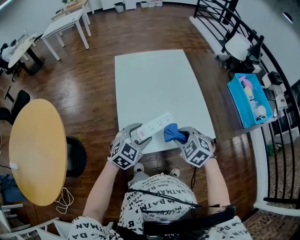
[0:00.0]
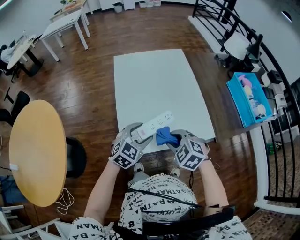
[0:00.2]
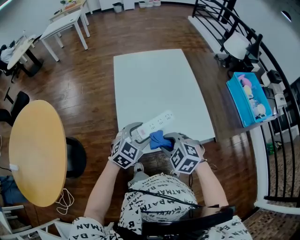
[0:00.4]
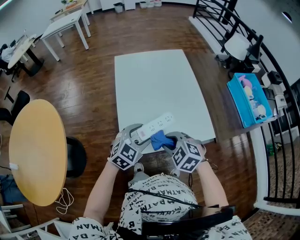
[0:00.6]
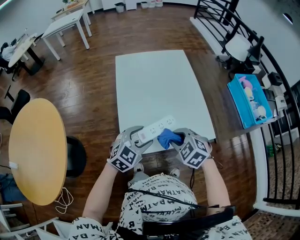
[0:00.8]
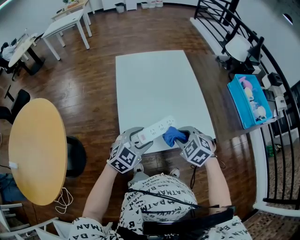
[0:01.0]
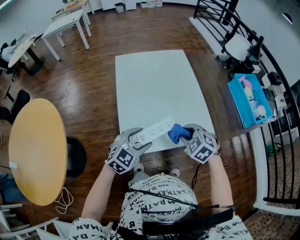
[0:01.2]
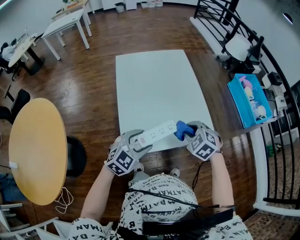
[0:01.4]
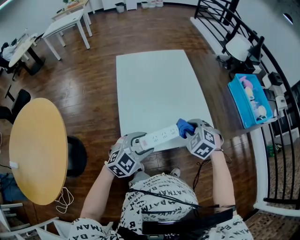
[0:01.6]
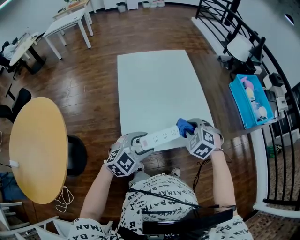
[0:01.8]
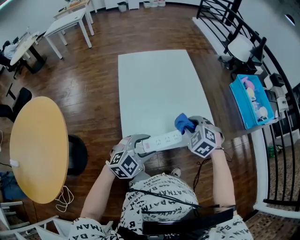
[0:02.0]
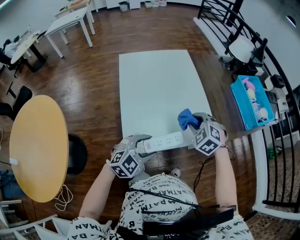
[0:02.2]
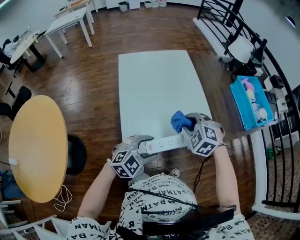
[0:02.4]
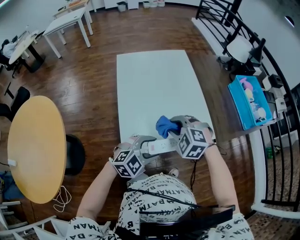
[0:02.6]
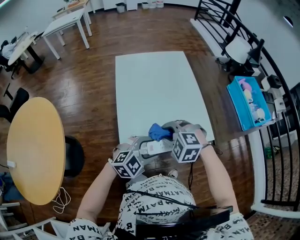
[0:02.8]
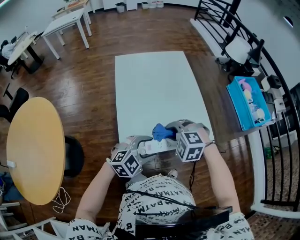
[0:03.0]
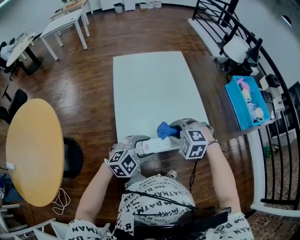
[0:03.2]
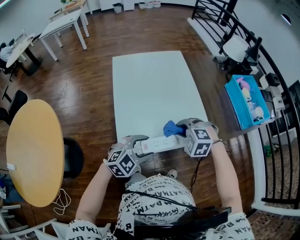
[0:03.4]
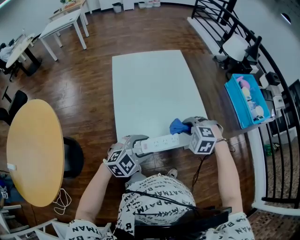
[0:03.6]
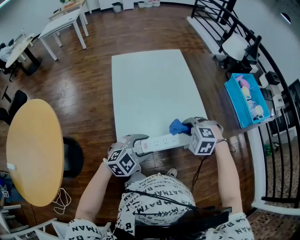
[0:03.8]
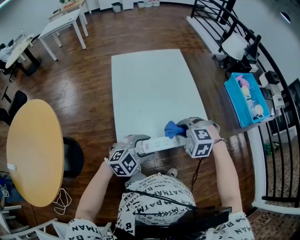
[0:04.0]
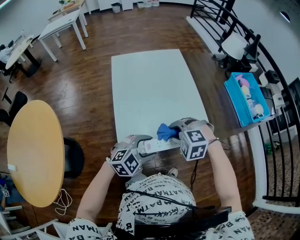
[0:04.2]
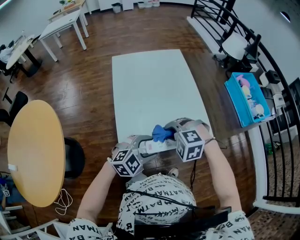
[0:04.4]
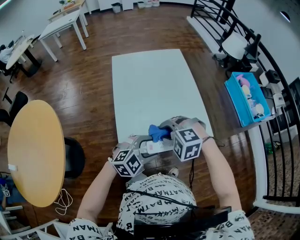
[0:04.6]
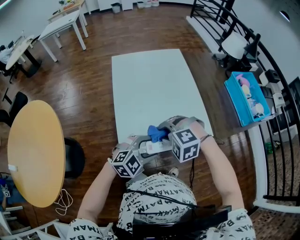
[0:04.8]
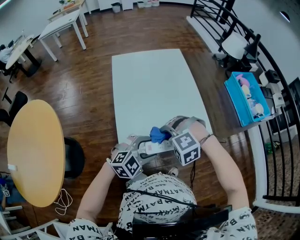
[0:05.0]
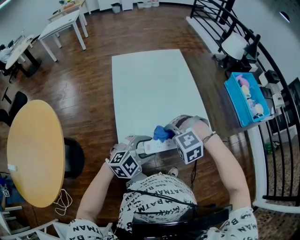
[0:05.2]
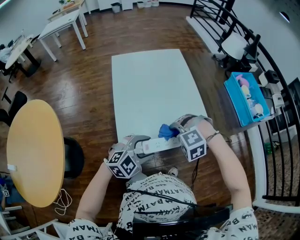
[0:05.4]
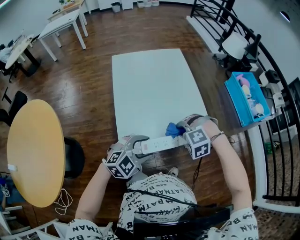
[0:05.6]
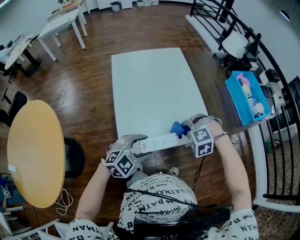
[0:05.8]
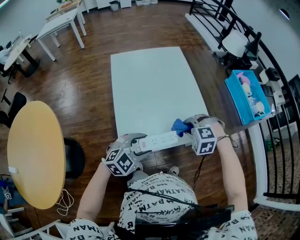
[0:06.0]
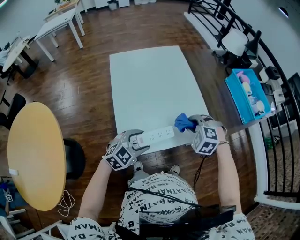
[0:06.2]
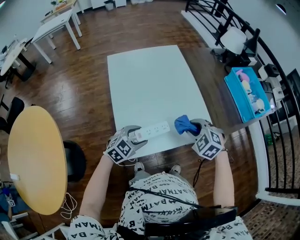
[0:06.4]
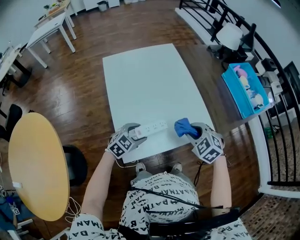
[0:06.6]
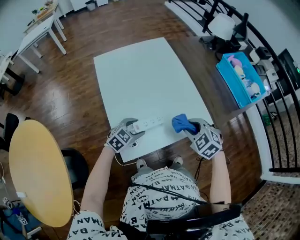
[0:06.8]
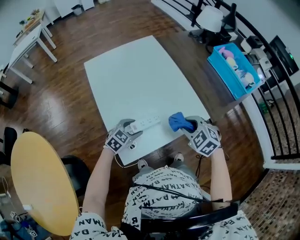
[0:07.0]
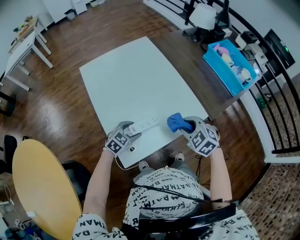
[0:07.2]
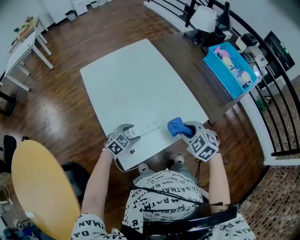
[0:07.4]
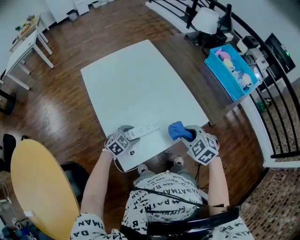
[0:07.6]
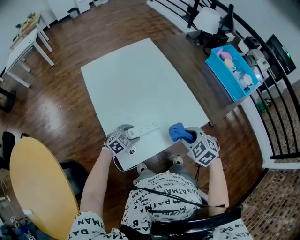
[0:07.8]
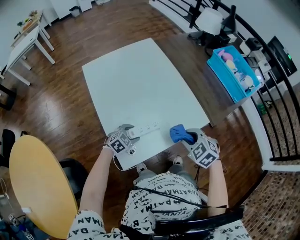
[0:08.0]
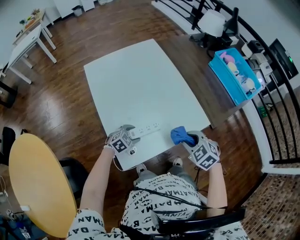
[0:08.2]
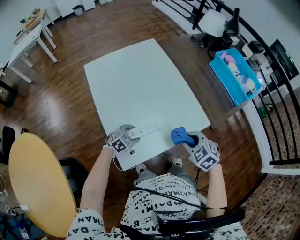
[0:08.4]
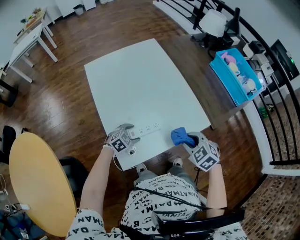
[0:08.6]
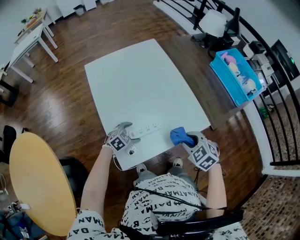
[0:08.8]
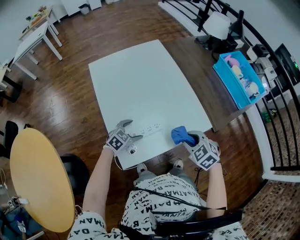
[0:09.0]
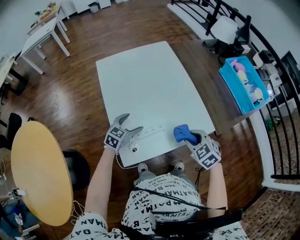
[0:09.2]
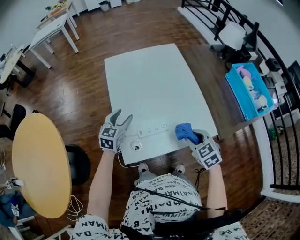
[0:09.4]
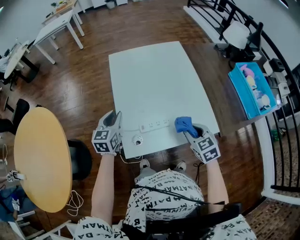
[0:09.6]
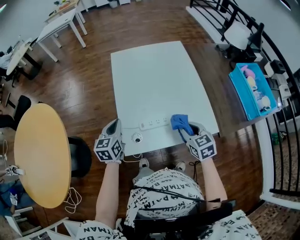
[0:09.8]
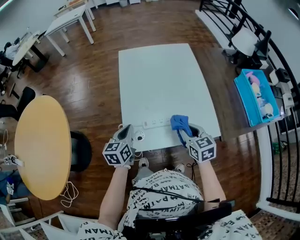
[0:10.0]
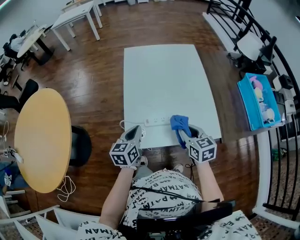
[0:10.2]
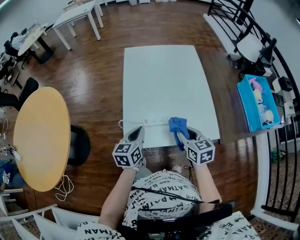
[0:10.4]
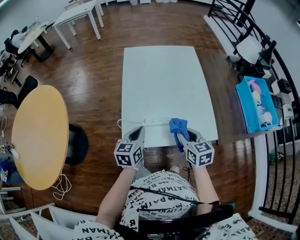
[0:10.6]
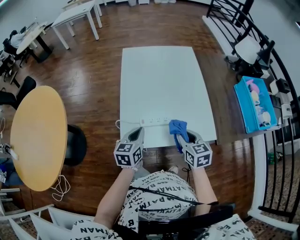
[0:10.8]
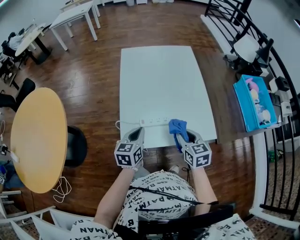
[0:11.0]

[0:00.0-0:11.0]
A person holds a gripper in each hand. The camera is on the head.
0:00.0 to 0:01.6: The right gripper ends up roughly 5 cm from where it was. Meanwhile the left gripper is displaced backward by about 5 cm.
0:01.6 to 0:03.2: The right gripper moves to the left, roughly 5 cm, and changes its angle by some 30 degrees.
0:03.2 to 0:04.8: The right gripper ends up approximately 5 cm from where it was.
0:04.8 to 0:06.2: The left gripper heads to the left, covering approximately 5 cm. Meanwhile the right gripper heads to the right and forward, covering about 15 cm, and turns by roughly 30 degrees.
0:06.2 to 0:07.8: The right gripper shifts by some 5 cm, and changes its angle by roughly 40 degrees, while the left gripper shifts about 20 cm downward and forward.
0:07.8 to 0:09.4: The left gripper travels upward and to the left by some 20 cm, and rotates roughly 50 degrees.
0:09.4 to 0:11.0: The left gripper goes some 15 cm backward, rotates roughly 20 degrees, and closes.

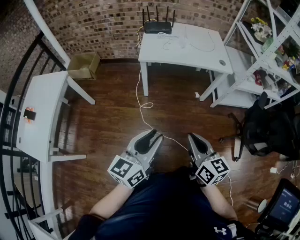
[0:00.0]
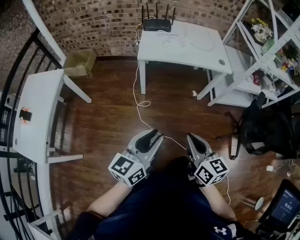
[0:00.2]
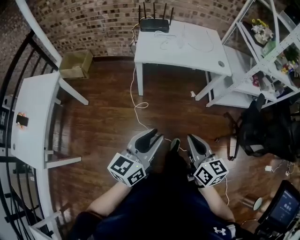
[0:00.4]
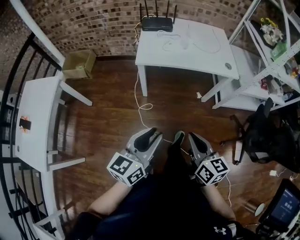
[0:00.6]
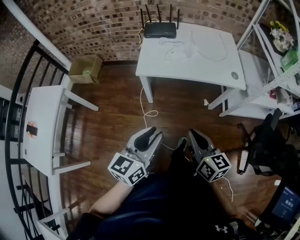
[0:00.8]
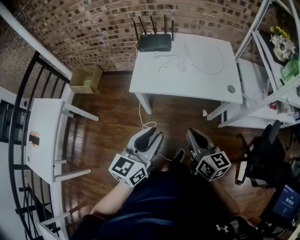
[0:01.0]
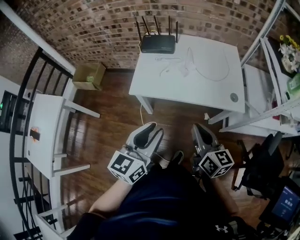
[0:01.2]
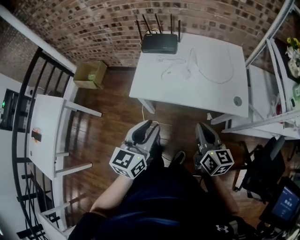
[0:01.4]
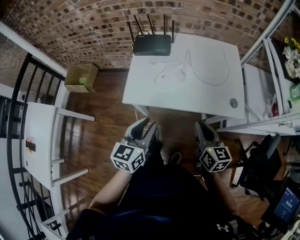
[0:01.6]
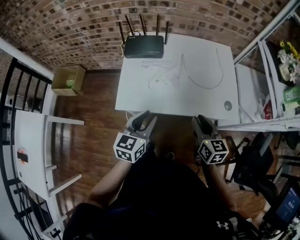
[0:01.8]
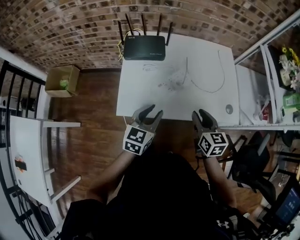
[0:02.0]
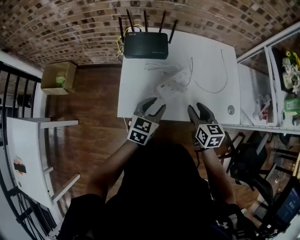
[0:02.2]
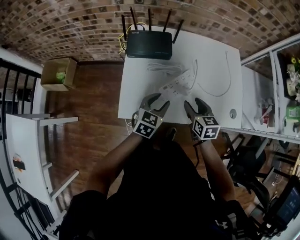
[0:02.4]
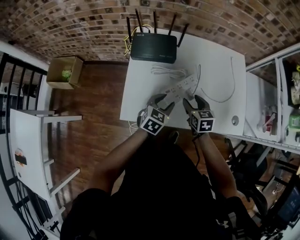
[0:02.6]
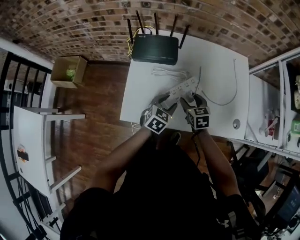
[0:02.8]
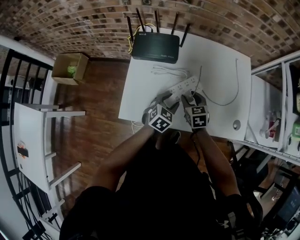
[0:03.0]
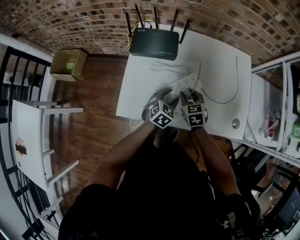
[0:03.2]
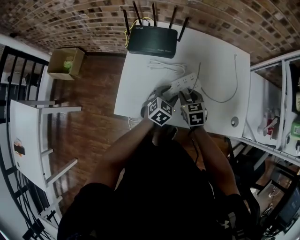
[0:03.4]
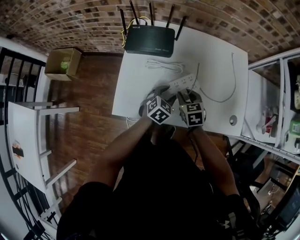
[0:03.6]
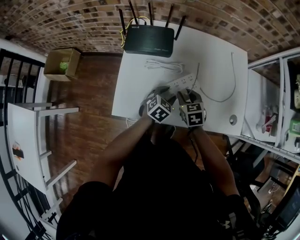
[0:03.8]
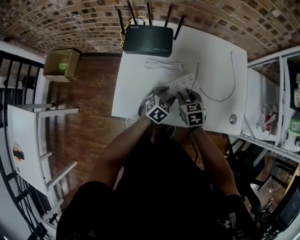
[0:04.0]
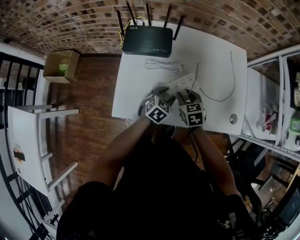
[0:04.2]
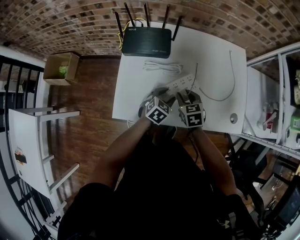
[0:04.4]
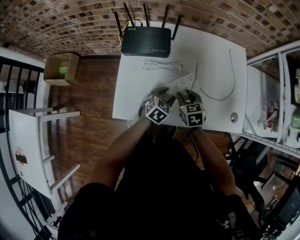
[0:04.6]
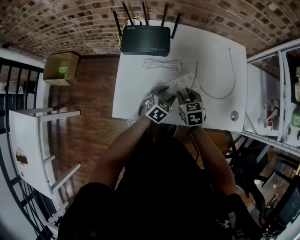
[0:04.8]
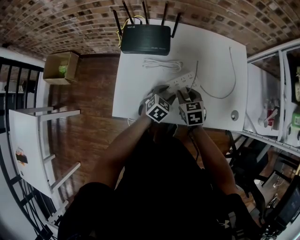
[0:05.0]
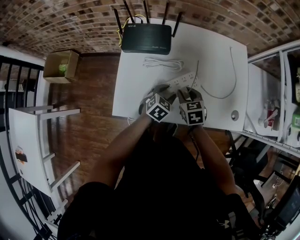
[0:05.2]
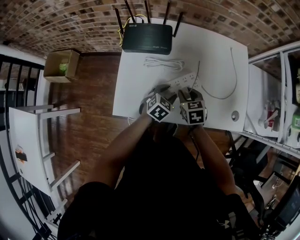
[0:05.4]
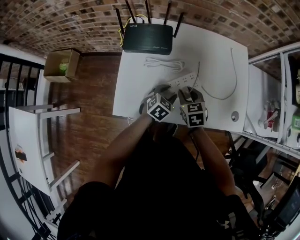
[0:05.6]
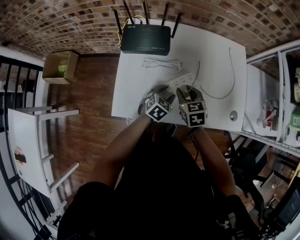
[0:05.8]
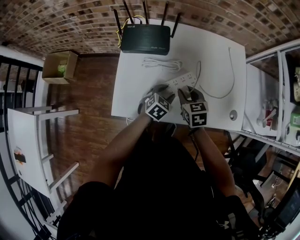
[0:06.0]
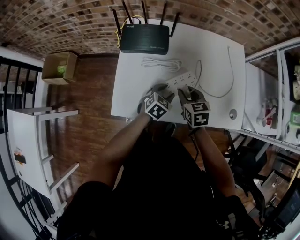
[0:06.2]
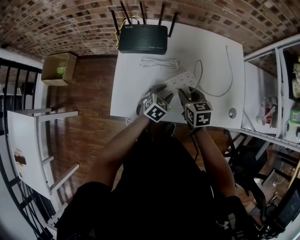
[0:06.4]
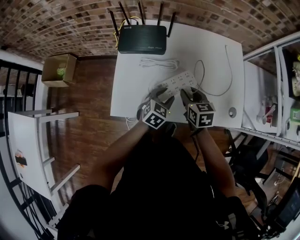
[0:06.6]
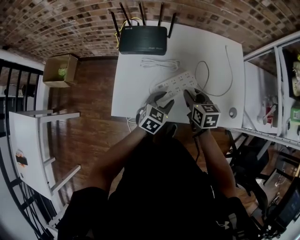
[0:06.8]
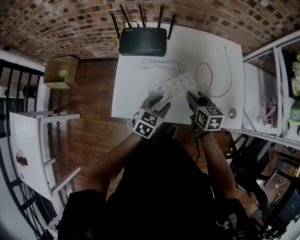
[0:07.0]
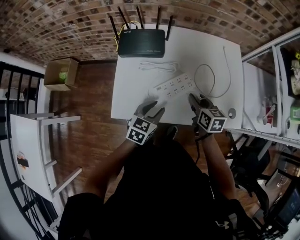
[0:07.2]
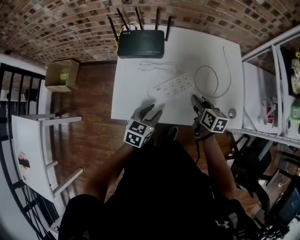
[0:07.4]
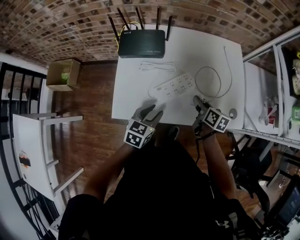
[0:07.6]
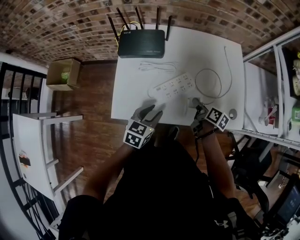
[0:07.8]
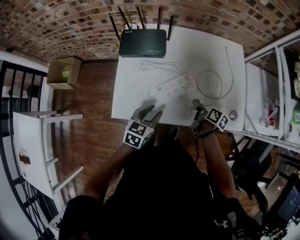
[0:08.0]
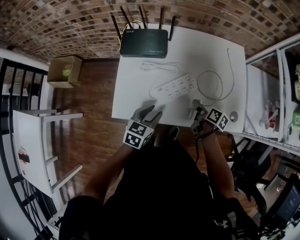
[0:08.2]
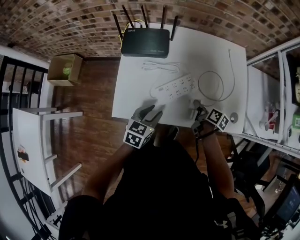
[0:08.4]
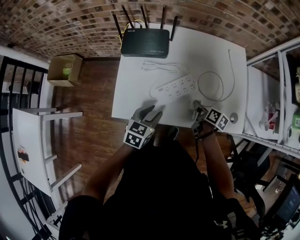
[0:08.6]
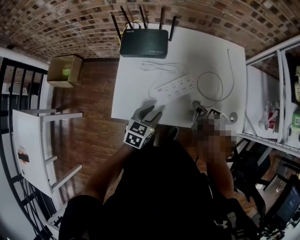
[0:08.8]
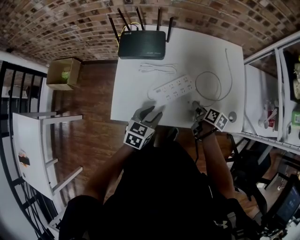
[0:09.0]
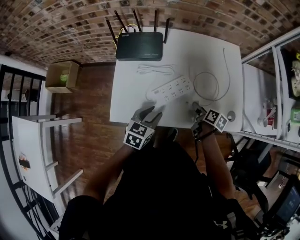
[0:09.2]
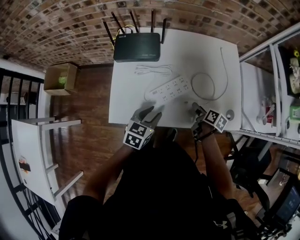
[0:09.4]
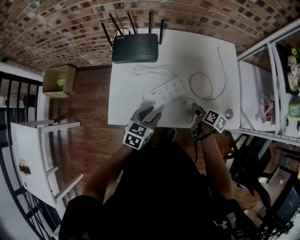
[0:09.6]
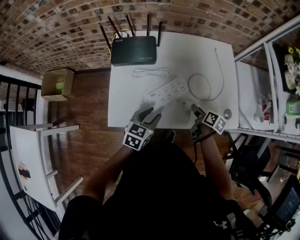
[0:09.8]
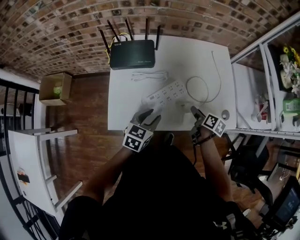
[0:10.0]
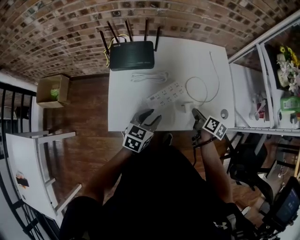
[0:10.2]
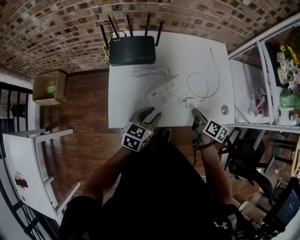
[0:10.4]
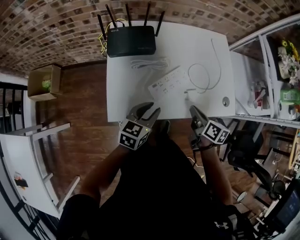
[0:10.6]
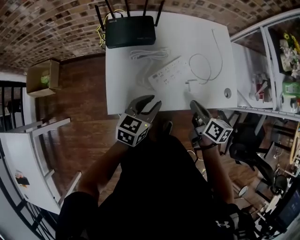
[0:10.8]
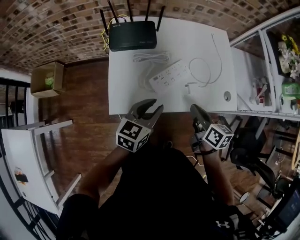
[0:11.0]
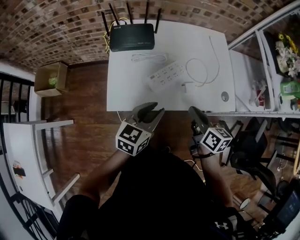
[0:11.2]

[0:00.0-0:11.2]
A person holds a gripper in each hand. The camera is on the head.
0:00.0 to 0:01.6: The pair of grippers is taken forward, roughly 50 cm. The left gripper swivels some 20 degrees.
0:01.6 to 0:03.2: The left gripper is displaced forward and downward by roughly 35 cm, and rotates about 40 degrees, while the right gripper goes about 35 cm forward, downward and to the left, rotates roughly 40 degrees, and opens its fingers.
0:03.2 to 0:06.4: The grippers make only small movements.
0:06.4 to 0:08.0: The left gripper goes roughly 10 cm backward and upward, and turns by roughly 20 degrees. The right gripper travels to the right and downward by some 15 cm, and rotates around the line of its fingers by approximately 50 degrees, clockwise from behind.
0:08.0 to 0:09.6: There are only small adjustments of the grippers.
0:09.6 to 0:11.2: The left gripper heads upward and backward, covering approximately 10 cm; the right gripper moves upward and backward, about 20 cm, changes its angle by approximately 30 degrees, and closes up.

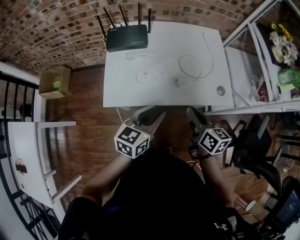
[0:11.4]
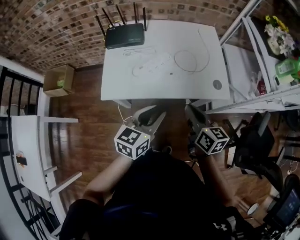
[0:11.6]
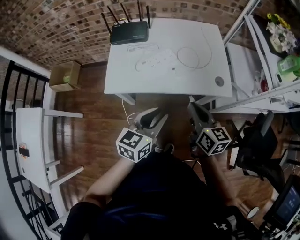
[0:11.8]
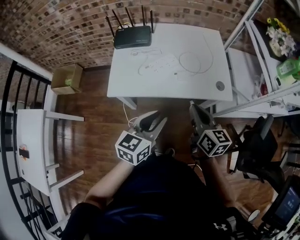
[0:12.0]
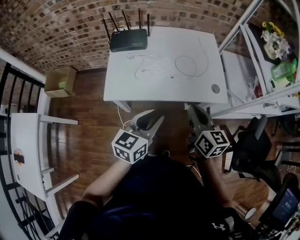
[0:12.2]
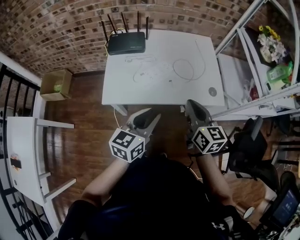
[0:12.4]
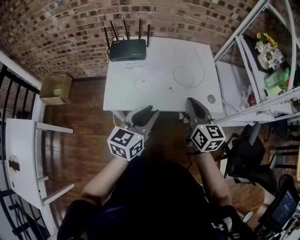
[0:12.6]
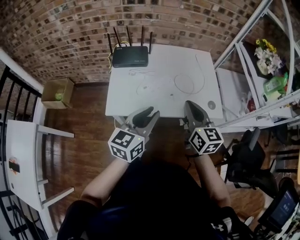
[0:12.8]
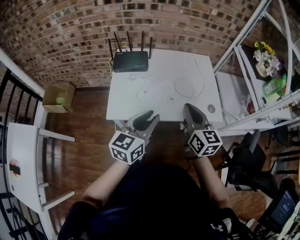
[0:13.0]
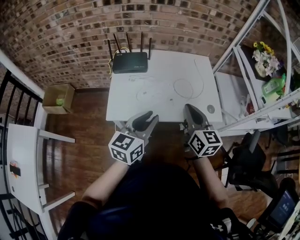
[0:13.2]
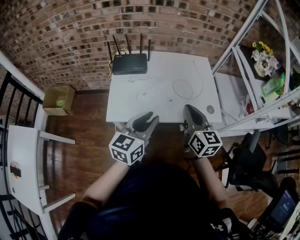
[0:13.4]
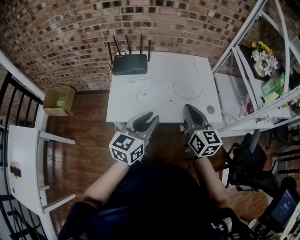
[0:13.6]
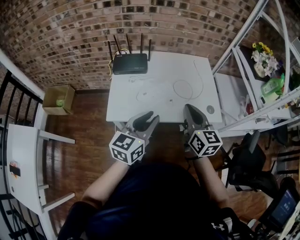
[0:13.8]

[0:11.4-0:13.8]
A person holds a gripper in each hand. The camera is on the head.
0:11.4 to 0:12.6: Both grippers move upward, about 10 cm. The left gripper travels backward and back again, roughly 10 cm each way, while the right gripper changes its angle by approximately 20 degrees.
0:12.6 to 0:13.8: The grippers move only a little.
